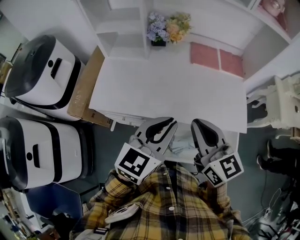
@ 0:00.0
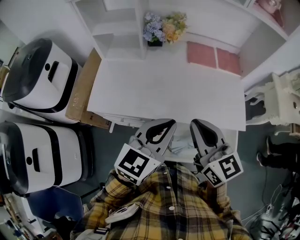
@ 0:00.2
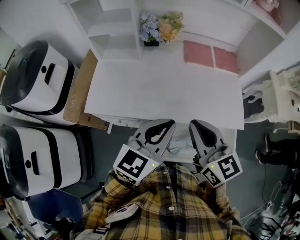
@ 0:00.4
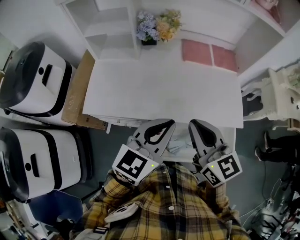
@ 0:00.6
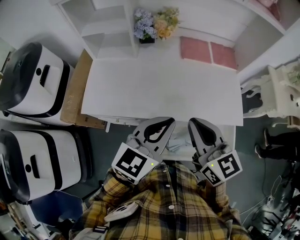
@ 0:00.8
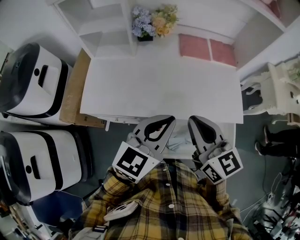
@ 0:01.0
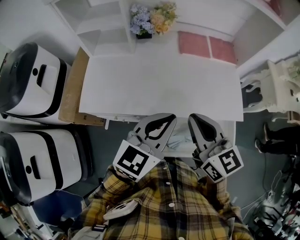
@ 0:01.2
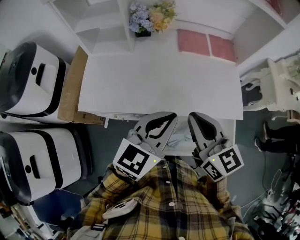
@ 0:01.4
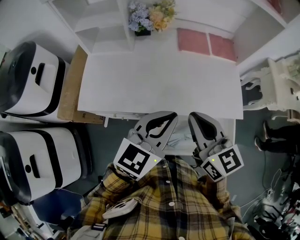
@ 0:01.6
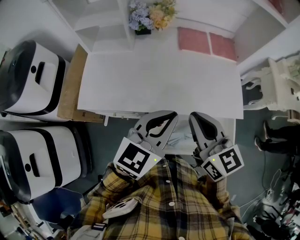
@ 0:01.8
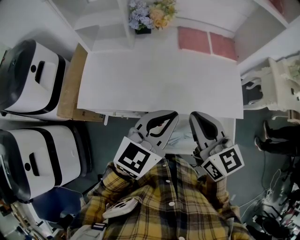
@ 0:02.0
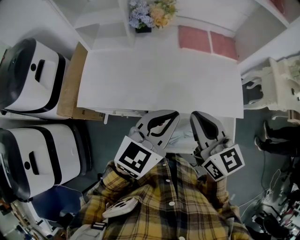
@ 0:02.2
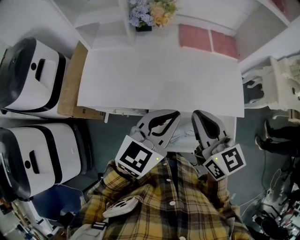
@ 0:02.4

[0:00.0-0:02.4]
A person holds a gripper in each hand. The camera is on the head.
0:00.0 to 0:02.4: The grippers make only small movements.

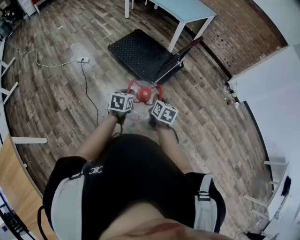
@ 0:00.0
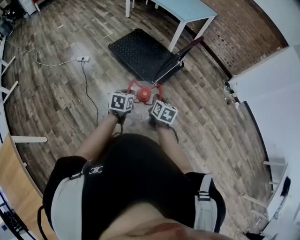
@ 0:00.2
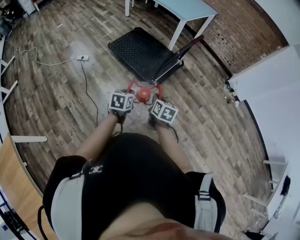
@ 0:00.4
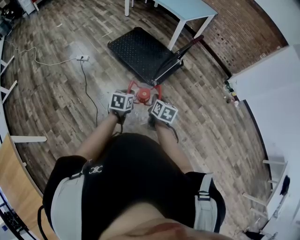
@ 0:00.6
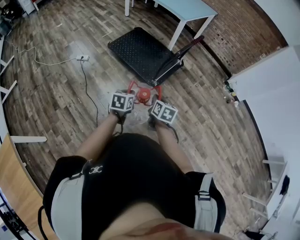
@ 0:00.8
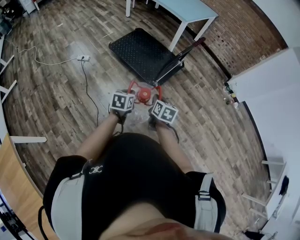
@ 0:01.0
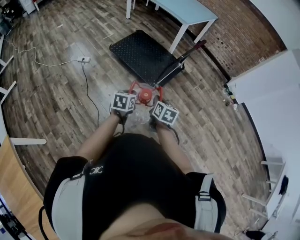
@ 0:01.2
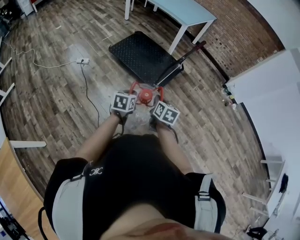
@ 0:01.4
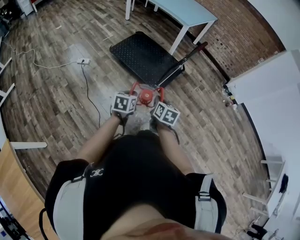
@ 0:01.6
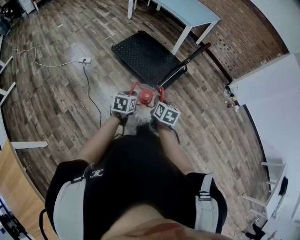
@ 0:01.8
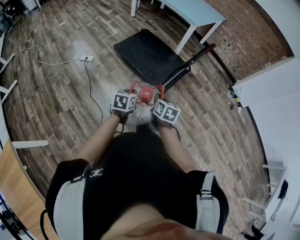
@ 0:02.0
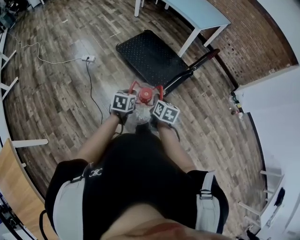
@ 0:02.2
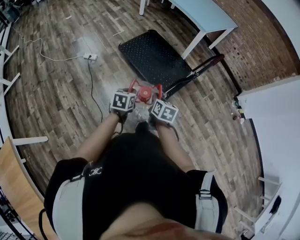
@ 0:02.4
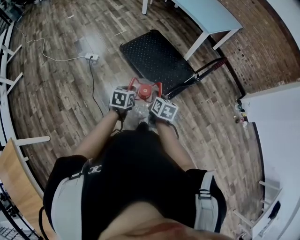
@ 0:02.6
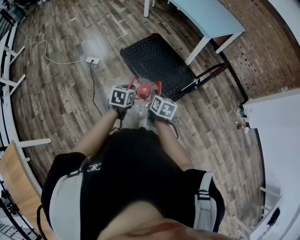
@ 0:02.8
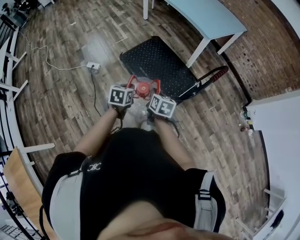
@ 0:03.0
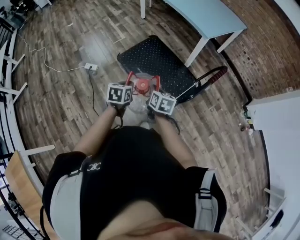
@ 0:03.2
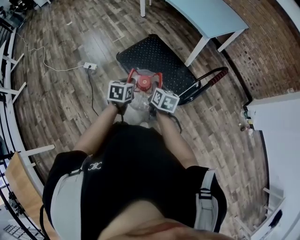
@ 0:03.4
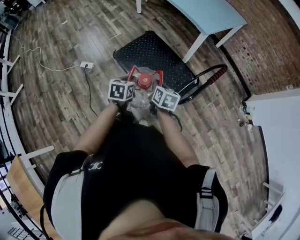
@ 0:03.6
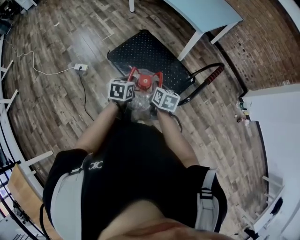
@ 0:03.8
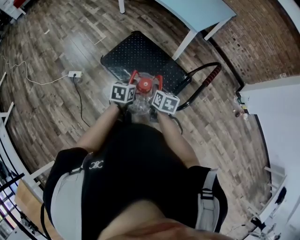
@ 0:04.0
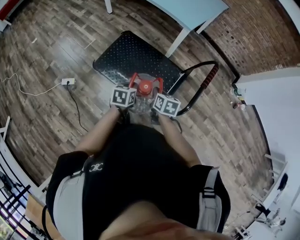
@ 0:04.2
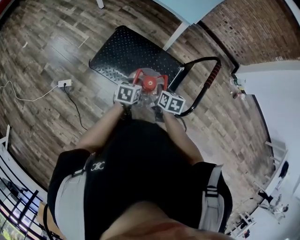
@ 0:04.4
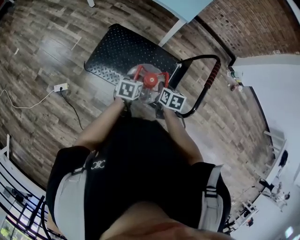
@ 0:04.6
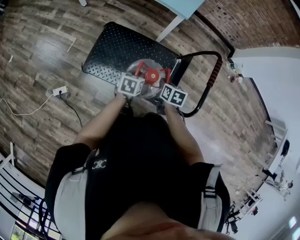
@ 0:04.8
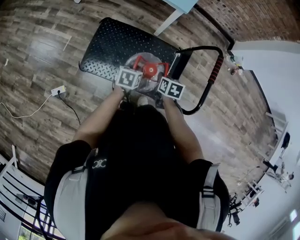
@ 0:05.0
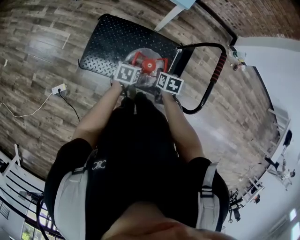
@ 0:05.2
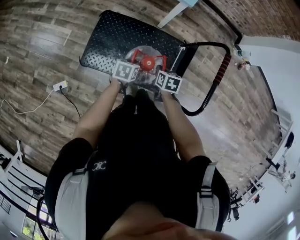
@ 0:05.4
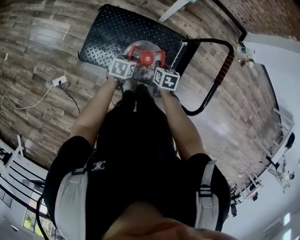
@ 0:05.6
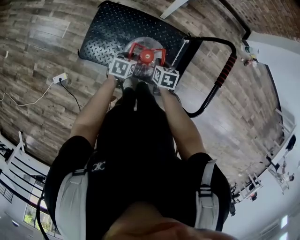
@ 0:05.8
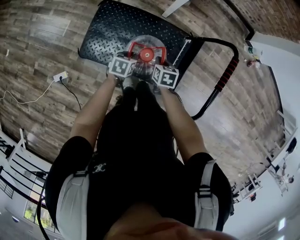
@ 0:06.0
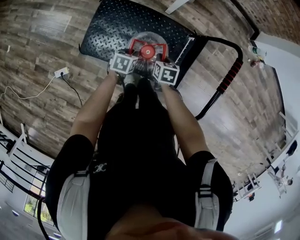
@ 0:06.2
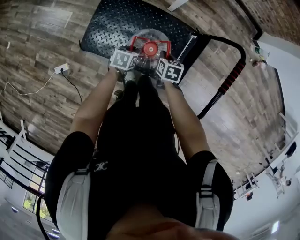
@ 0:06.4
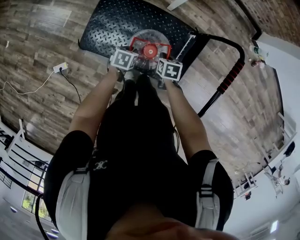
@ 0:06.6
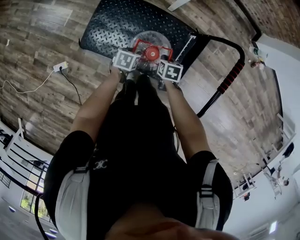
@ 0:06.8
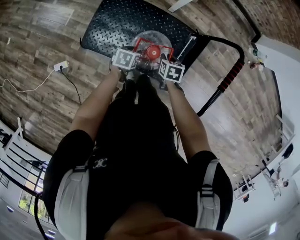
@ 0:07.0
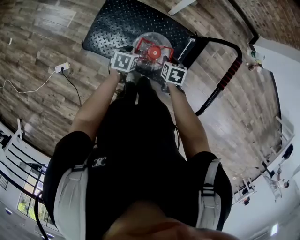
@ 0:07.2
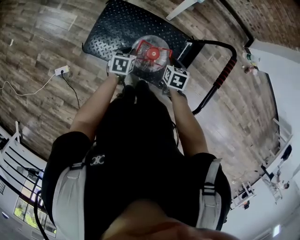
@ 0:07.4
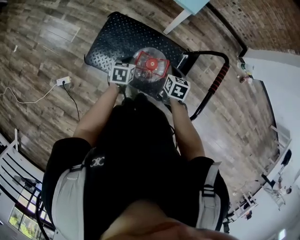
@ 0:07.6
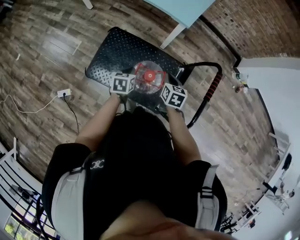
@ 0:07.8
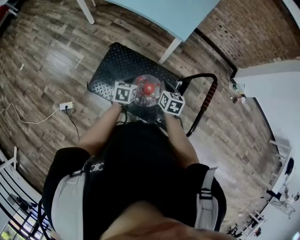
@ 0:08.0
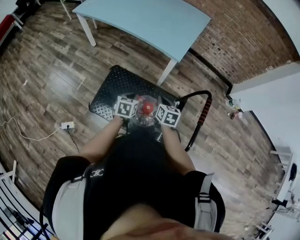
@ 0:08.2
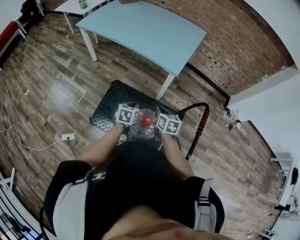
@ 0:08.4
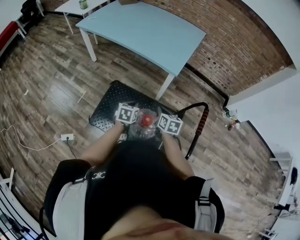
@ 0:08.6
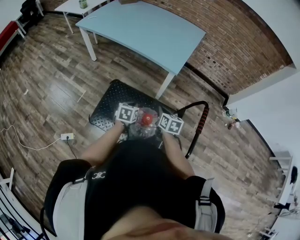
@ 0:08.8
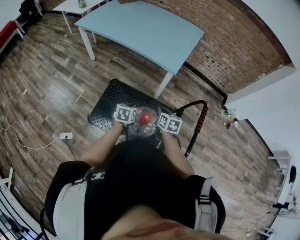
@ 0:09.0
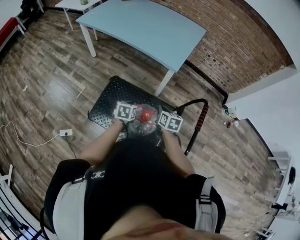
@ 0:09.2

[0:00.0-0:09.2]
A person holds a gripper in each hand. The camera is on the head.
0:00.0 to 0:01.6: Both grippers travel together to the left, some 5 cm.
0:01.6 to 0:03.0: Both grippers move forward, some 30 cm.
0:03.0 to 0:04.6: The left gripper changes place by about 30 cm, and swivels approximately 30 degrees; the right gripper moves about 25 cm, and swivels about 30 degrees.
0:04.6 to 0:06.2: The two grippers go about 20 cm downward and forward.
0:06.2 to 0:07.6: The two grippers go approximately 10 cm upward. The right gripper opens, then closes again. The left gripper opens, then closes again.
0:07.6 to 0:09.2: The two grippers go approximately 10 cm upward.

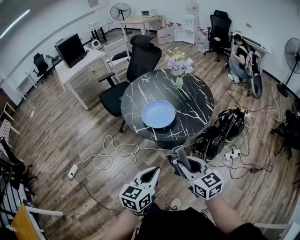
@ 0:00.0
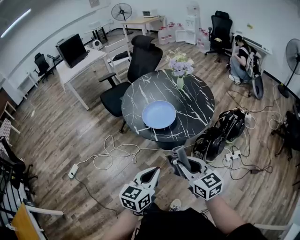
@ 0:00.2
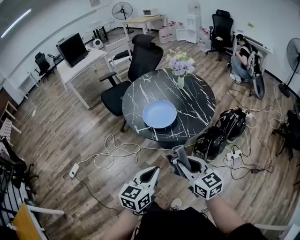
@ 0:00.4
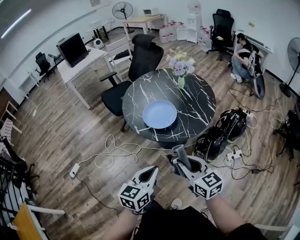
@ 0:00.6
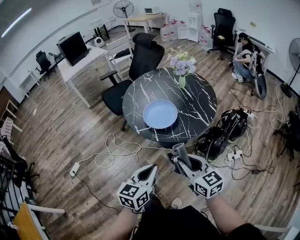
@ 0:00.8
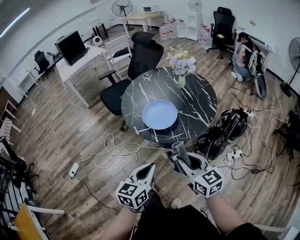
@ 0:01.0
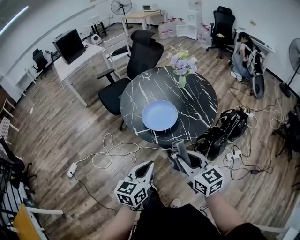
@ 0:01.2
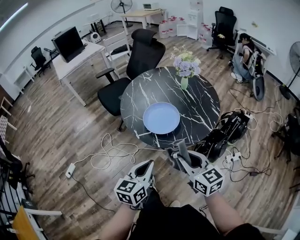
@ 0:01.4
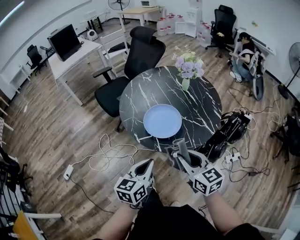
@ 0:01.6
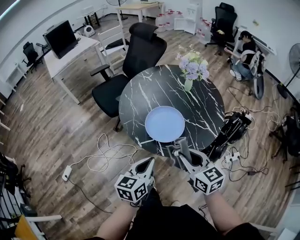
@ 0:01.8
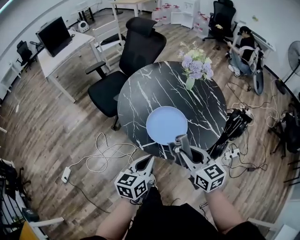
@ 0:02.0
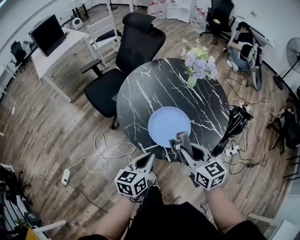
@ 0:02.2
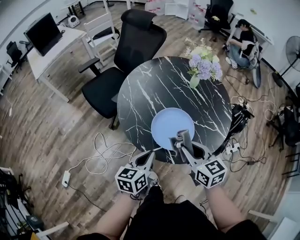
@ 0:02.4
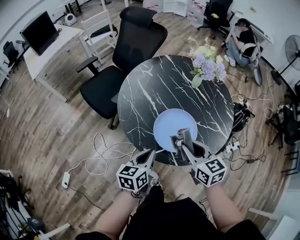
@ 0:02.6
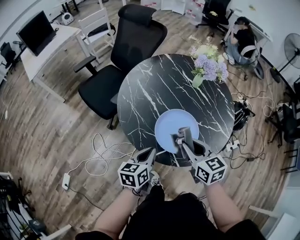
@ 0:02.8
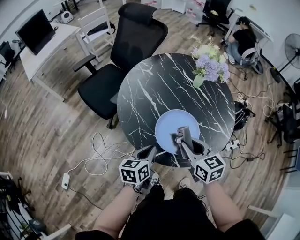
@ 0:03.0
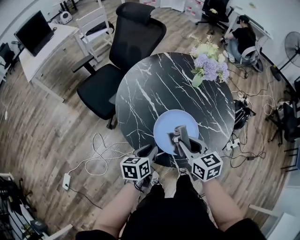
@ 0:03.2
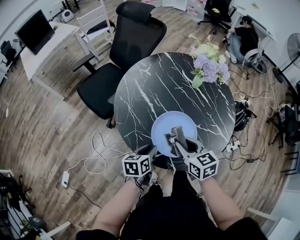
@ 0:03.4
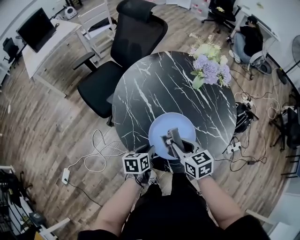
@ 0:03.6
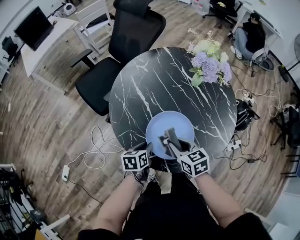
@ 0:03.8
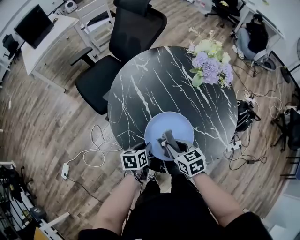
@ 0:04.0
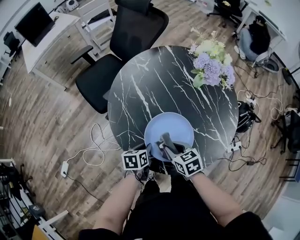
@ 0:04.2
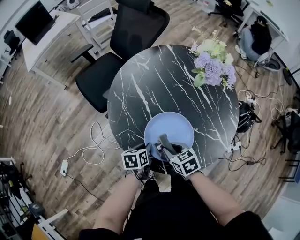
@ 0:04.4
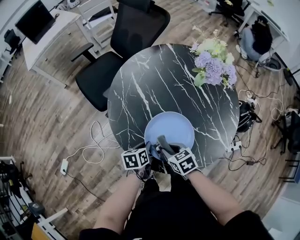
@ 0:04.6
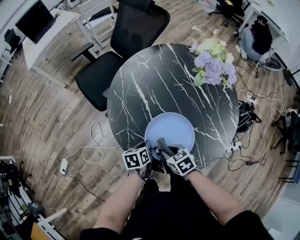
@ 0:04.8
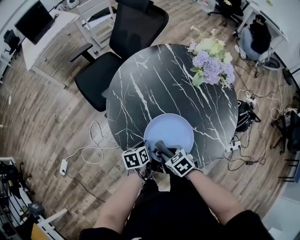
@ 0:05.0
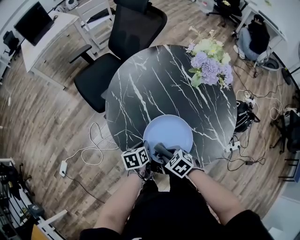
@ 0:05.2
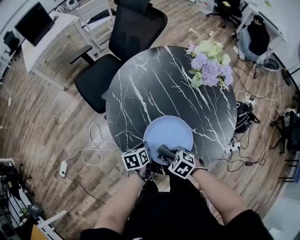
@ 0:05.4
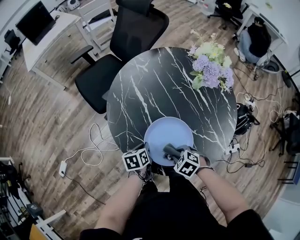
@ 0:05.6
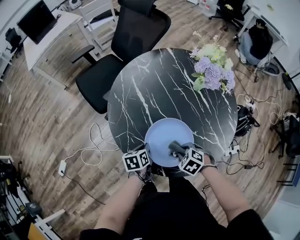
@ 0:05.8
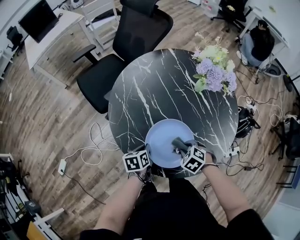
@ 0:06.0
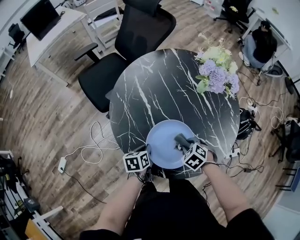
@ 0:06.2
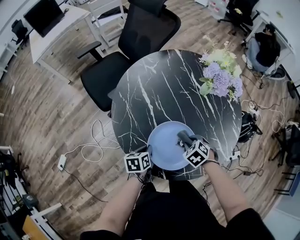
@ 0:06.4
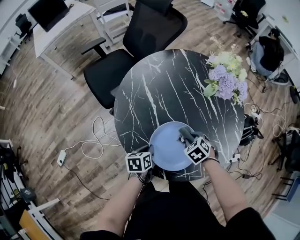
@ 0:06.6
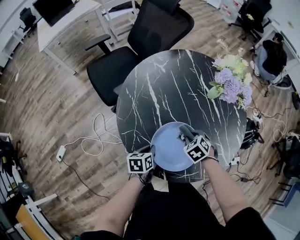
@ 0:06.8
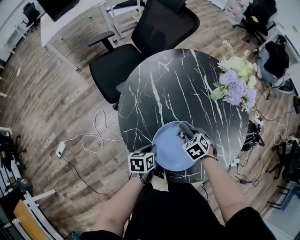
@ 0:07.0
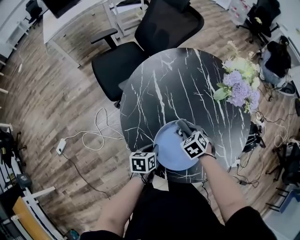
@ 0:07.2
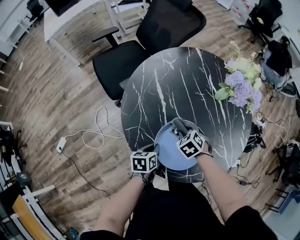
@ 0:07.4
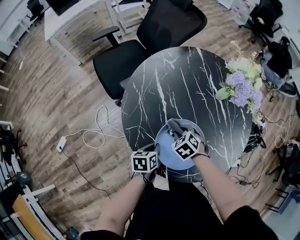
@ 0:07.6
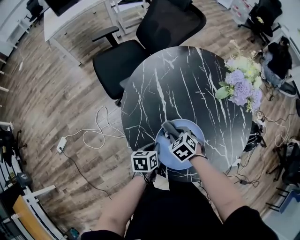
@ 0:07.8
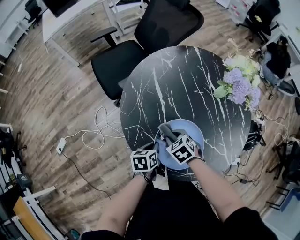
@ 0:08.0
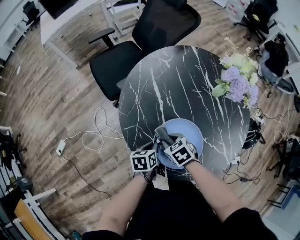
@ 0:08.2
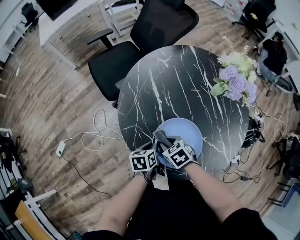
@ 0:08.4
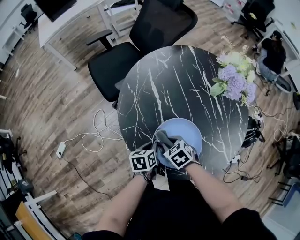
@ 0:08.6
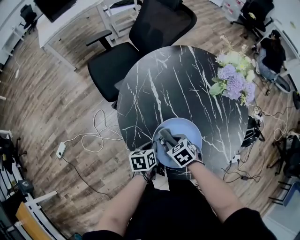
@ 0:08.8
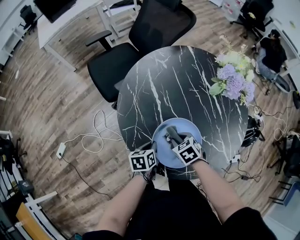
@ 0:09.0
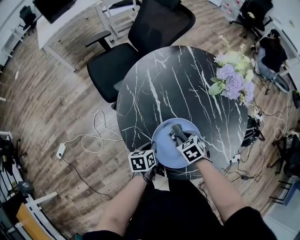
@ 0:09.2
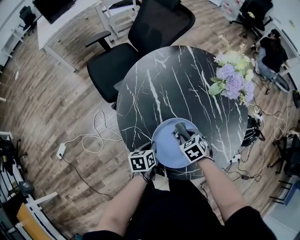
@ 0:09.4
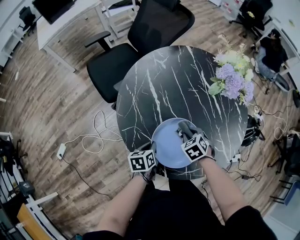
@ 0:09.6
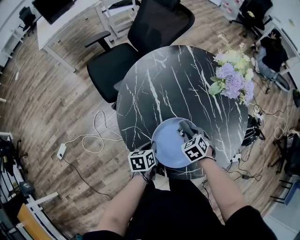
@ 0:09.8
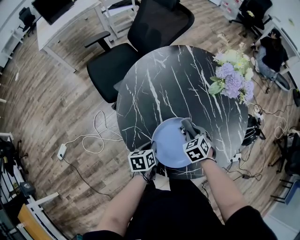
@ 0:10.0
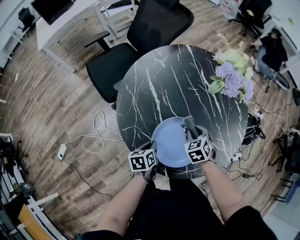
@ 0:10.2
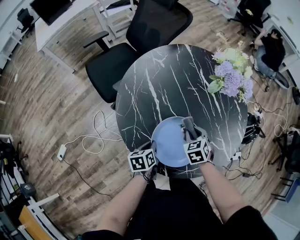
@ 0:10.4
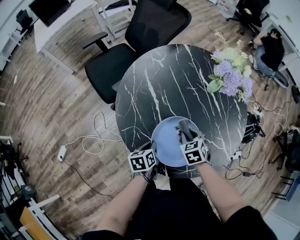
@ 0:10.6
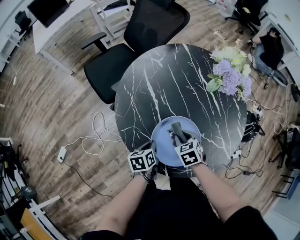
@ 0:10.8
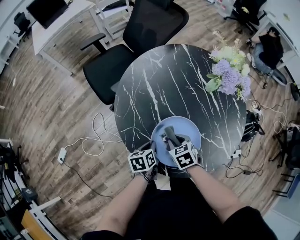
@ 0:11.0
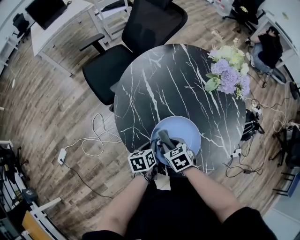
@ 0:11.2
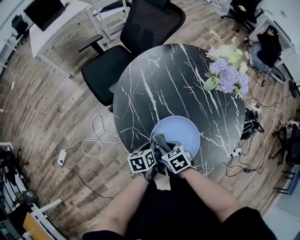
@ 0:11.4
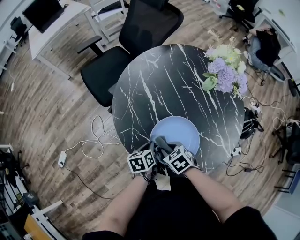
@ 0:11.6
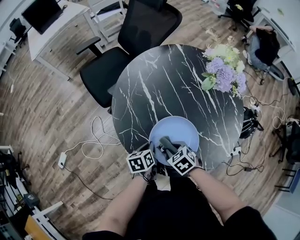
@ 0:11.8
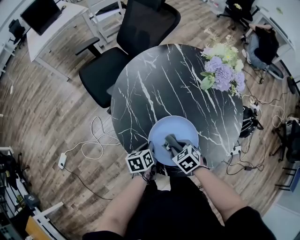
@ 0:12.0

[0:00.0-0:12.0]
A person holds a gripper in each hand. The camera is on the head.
0:00.0 to 0:01.6: Both grippers move forward, roughly 15 cm.
0:01.6 to 0:03.0: The left gripper travels forward, downward and to the left by approximately 30 cm, and changes its angle by about 20 degrees. The right gripper moves forward and to the left, roughly 25 cm.
0:03.0 to 0:04.4: The grippers both shift downward by approximately 15 cm. The right gripper swivels approximately 30 degrees. Meanwhile the left gripper changes its angle by some 20 degrees.
0:04.4 to 0:06.0: The right gripper moves to the right, approximately 10 cm, and changes its angle by approximately 40 degrees.
0:06.0 to 0:07.6: The right gripper is displaced forward and to the left by about 15 cm.
0:09.0 to 0:10.4: The right gripper moves to the right, some 10 cm, and changes its angle by approximately 20 degrees.
0:10.4 to 0:12.0: The right gripper travels backward and to the left by roughly 10 cm, and turns by approximately 20 degrees.
